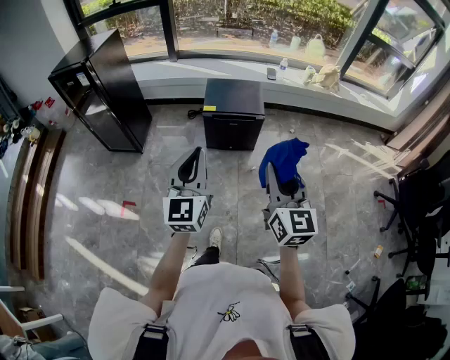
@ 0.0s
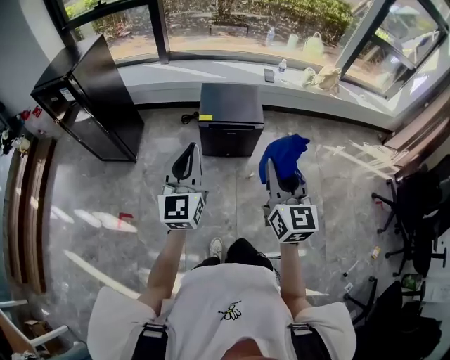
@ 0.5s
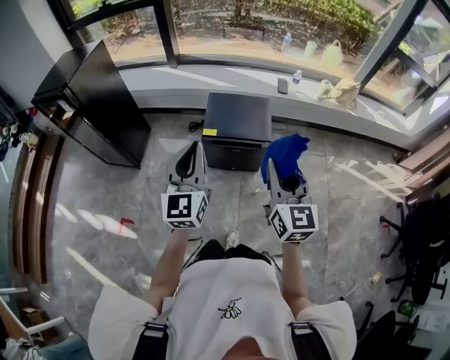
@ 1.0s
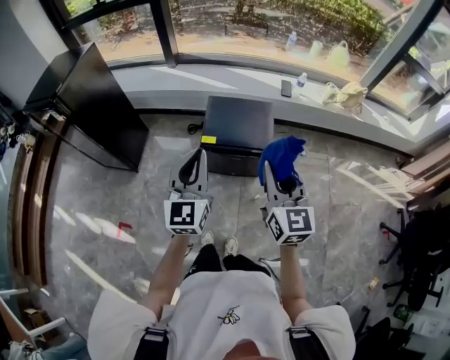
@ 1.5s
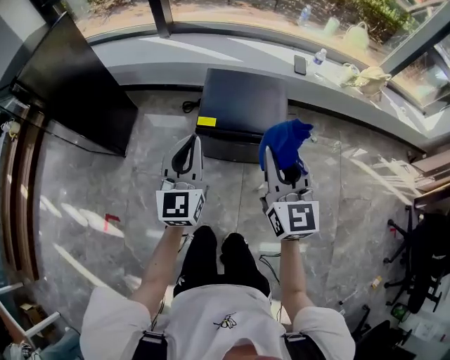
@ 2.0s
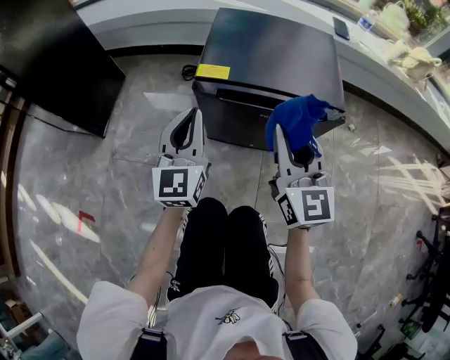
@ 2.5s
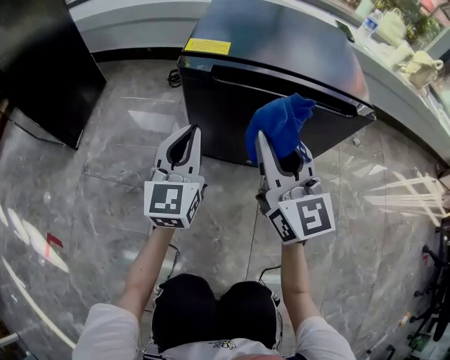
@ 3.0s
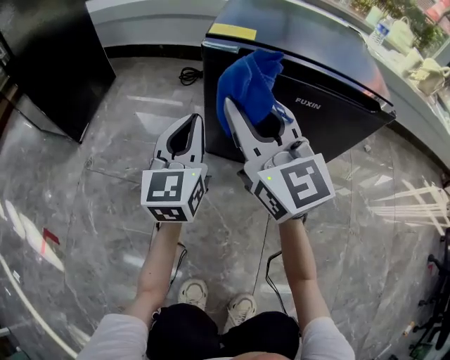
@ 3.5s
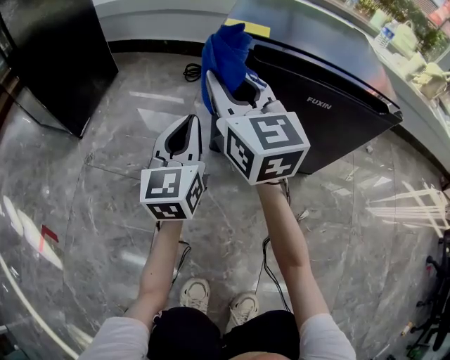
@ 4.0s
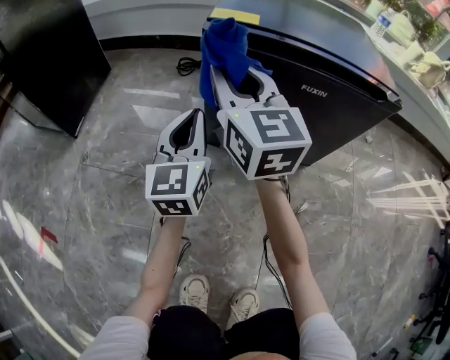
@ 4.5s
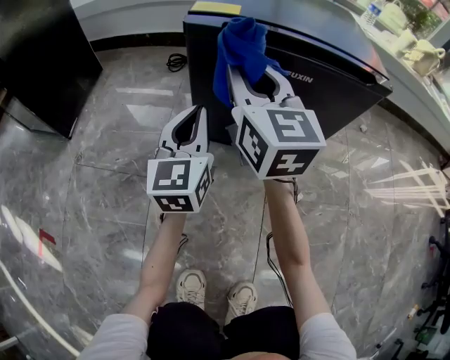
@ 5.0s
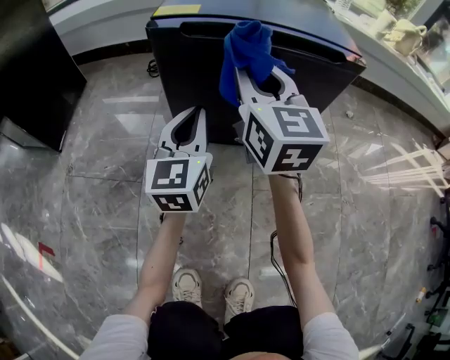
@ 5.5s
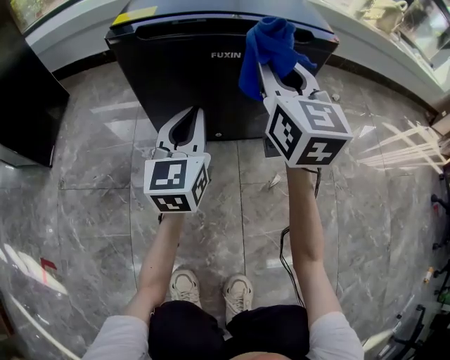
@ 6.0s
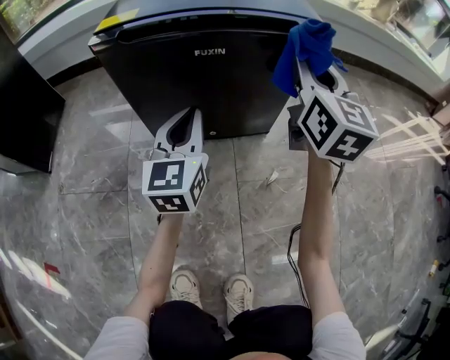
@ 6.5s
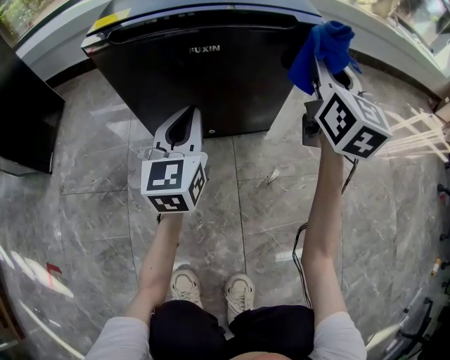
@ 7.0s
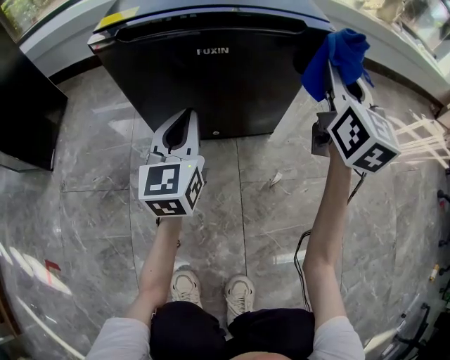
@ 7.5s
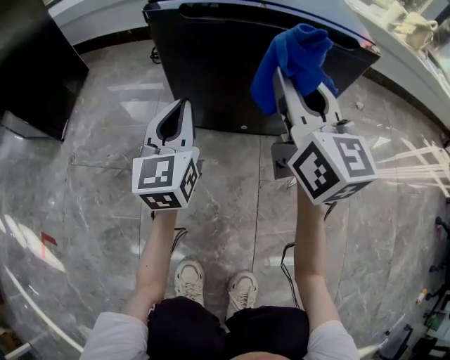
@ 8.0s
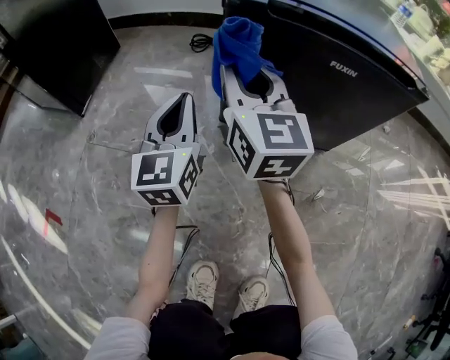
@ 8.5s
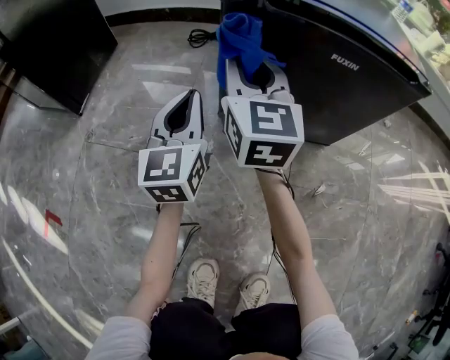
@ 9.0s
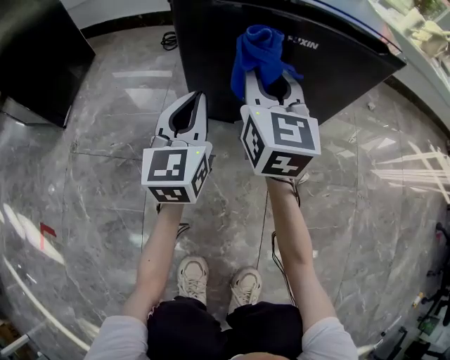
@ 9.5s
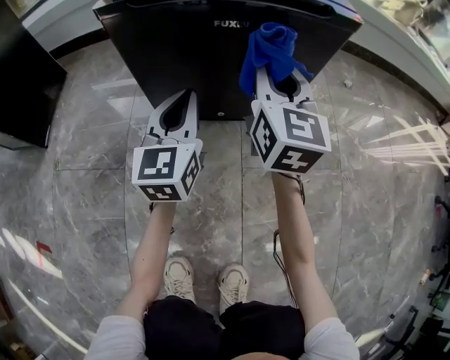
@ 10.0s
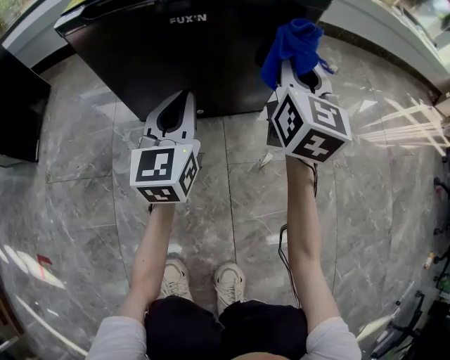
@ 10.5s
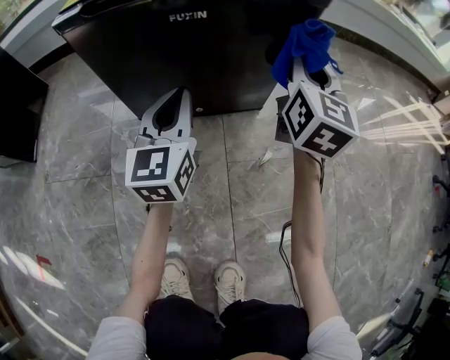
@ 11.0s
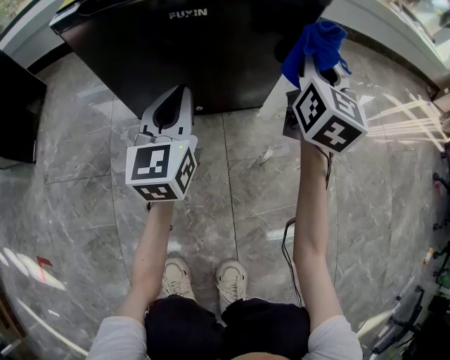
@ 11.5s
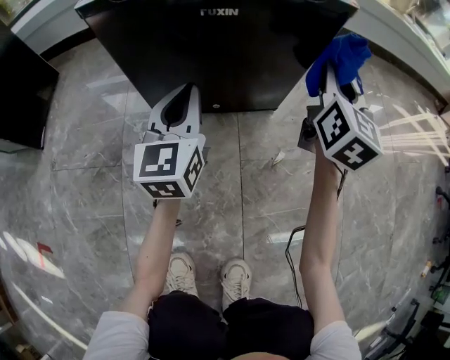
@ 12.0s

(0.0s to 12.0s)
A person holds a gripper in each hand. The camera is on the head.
0.0s - 2.0s: The two grippers travel together, forward, approximately 40 cm. The two grippers go about 20 cm downward.
2.0s - 4.0s: Both grippers move downward, about 50 cm.
4.0s - 6.0s: The two grippers go roughly 20 cm to the right. The right gripper rotates some 30 degrees.
6.0s - 8.0s: The left gripper goes roughly 10 cm to the left. The right gripper travels to the right and back again, about 15 cm each way.
8.0s - 10.0s: The right gripper shifts approximately 5 cm downward, and travels to the left and back again, about 20 cm each way. The left gripper goes some 10 cm to the right.
10.0s - 12.0s: The right gripper travels to the right by roughly 15 cm.

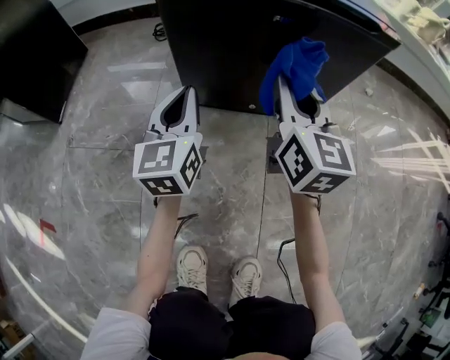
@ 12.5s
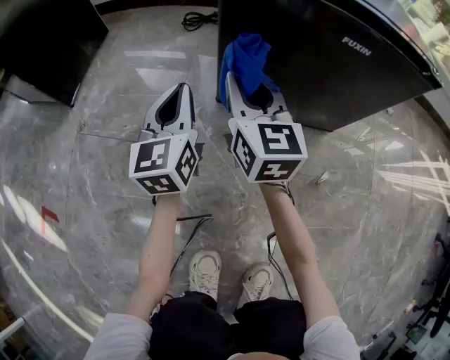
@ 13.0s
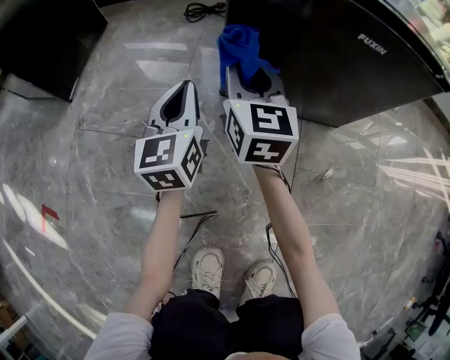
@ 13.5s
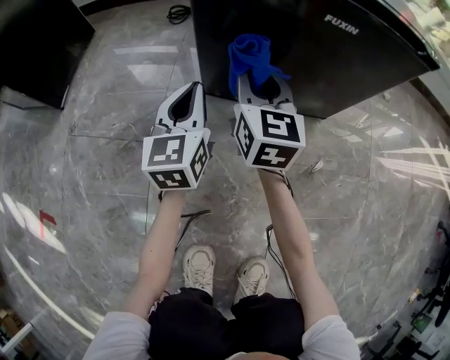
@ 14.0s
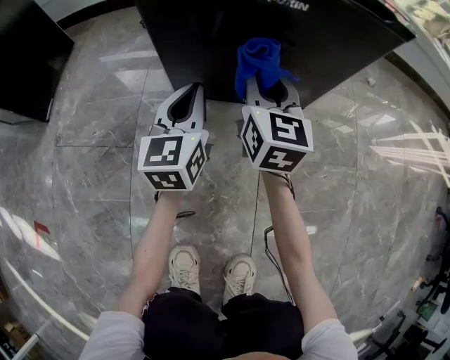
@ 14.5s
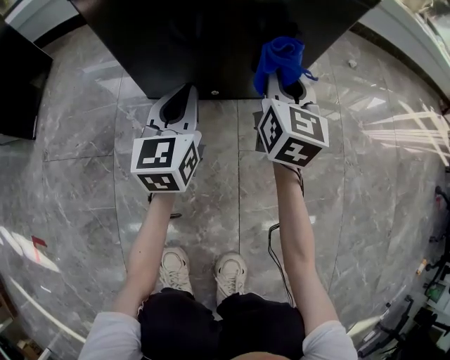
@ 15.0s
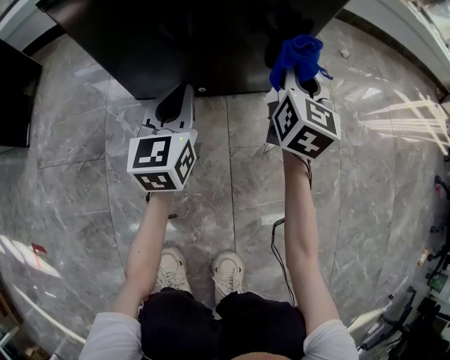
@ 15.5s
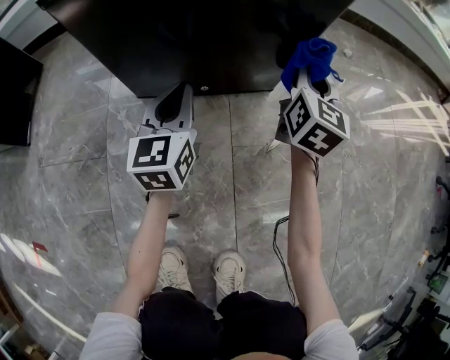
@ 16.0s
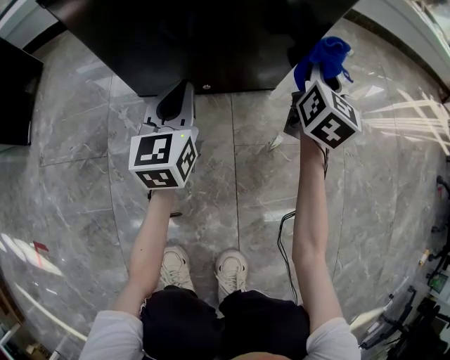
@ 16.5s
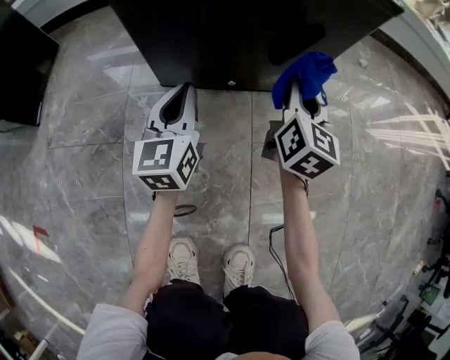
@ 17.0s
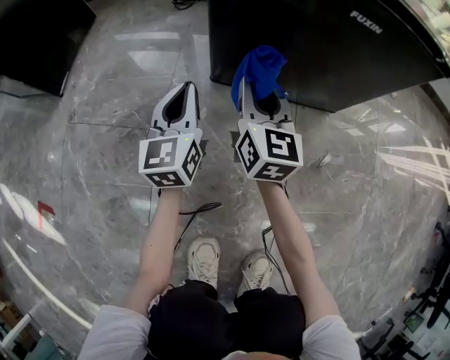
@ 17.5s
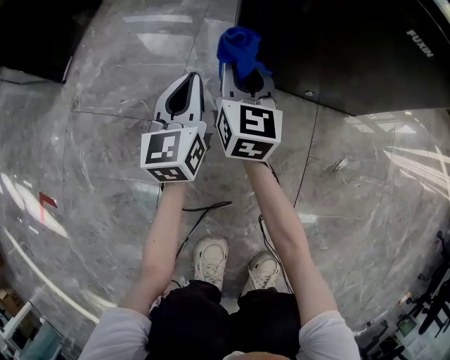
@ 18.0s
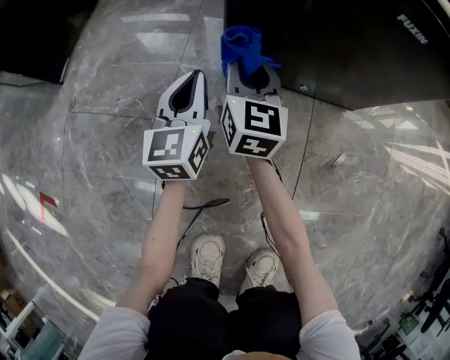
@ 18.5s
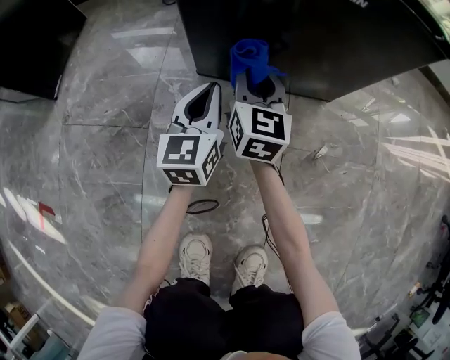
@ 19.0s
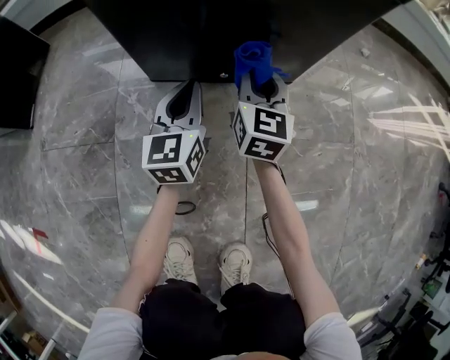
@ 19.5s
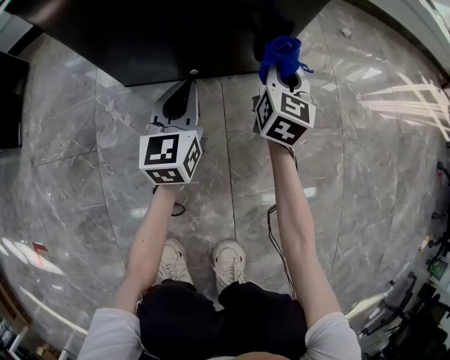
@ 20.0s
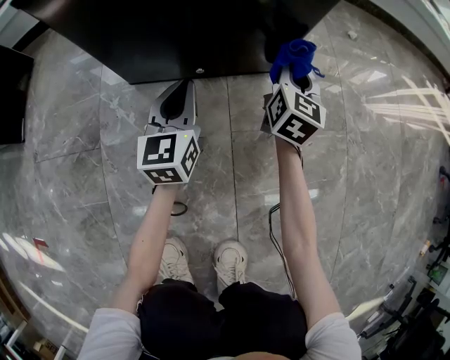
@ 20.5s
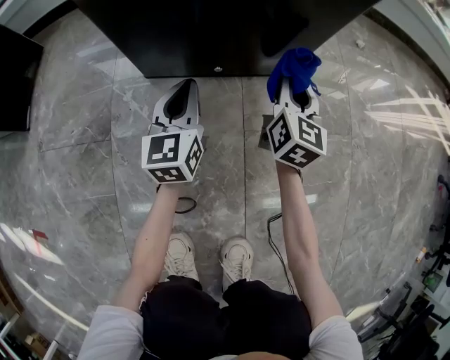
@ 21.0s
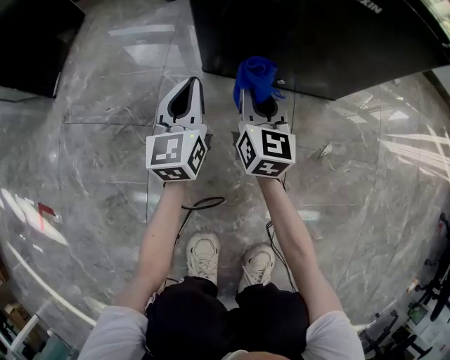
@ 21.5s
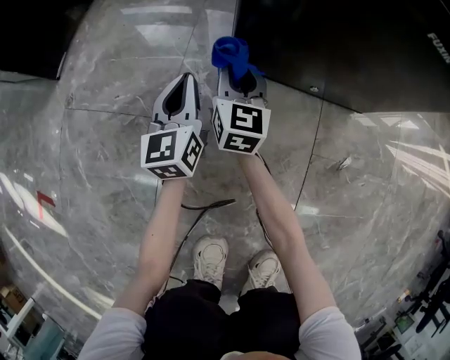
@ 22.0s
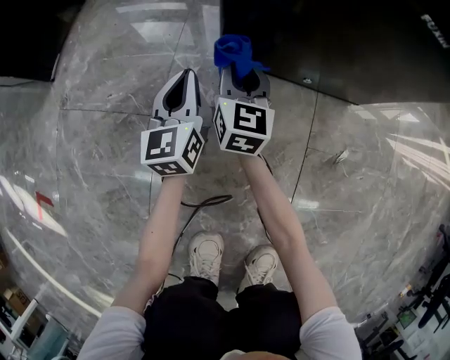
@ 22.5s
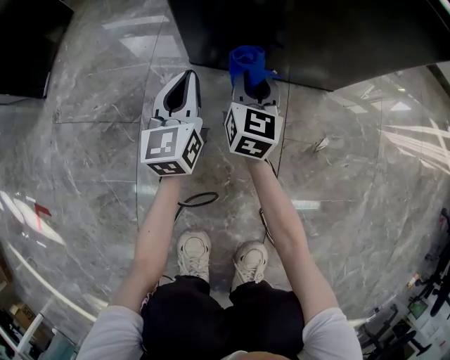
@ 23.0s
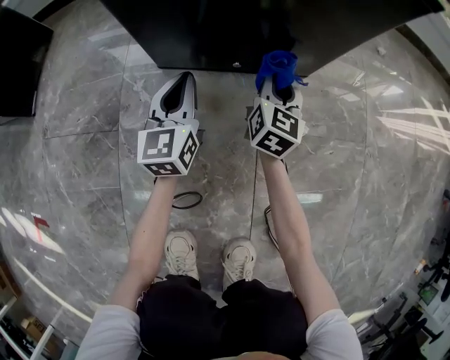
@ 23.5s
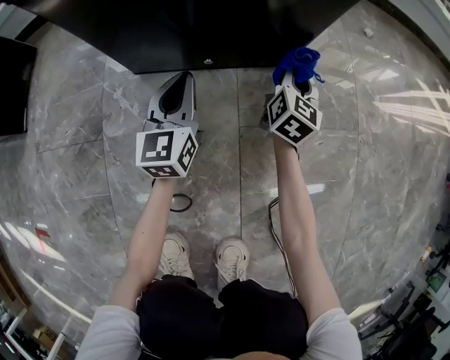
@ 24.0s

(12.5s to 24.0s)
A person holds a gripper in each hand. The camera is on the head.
12.5s - 14.5s: The left gripper moves downward, roughly 5 cm, and goes to the left and returns, some 10 cm each way. The right gripper is displaced downward by roughly 10 cm, and moves roughly 20 cm to the left and comes back.
14.5s - 16.5s: The right gripper shifts about 25 cm to the right, and swivels approximately 30 degrees, while the left gripper goes approximately 5 cm to the right.
16.5s - 18.5s: The left gripper moves approximately 20 cm, while the right gripper ends up some 40 cm from where it was, and swivels some 30 degrees.
18.5s - 20.0s: The left gripper shifts some 25 cm to the right, while the right gripper shifts some 35 cm to the right, and rotates approximately 30 degrees.
20.0s - 22.0s: The left gripper moves some 30 cm, and rotates approximately 20 degrees. The right gripper changes place by approximately 40 cm, and turns by some 30 degrees.
22.0s - 24.0s: The left gripper shifts by approximately 25 cm, while the right gripper ends up about 40 cm from where it was, and rotates some 30 degrees.

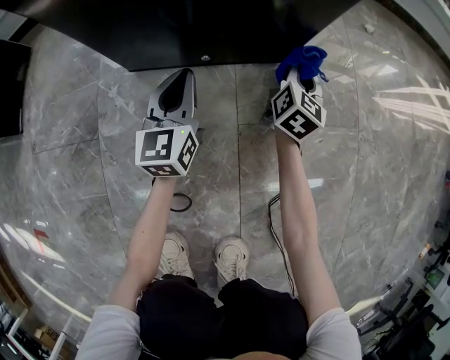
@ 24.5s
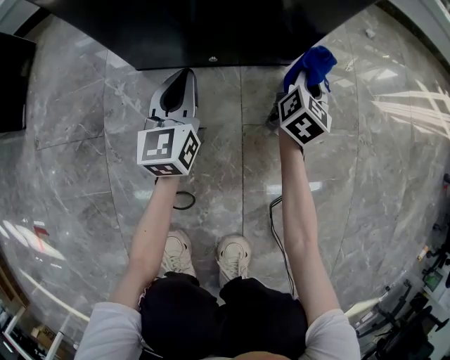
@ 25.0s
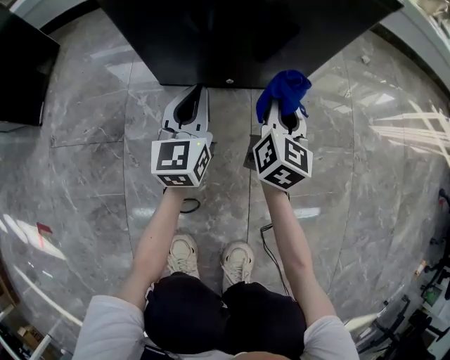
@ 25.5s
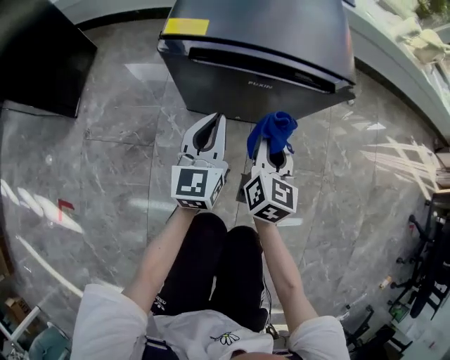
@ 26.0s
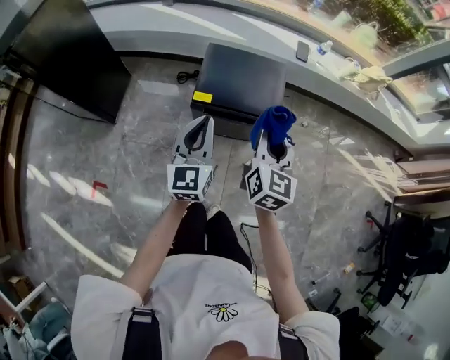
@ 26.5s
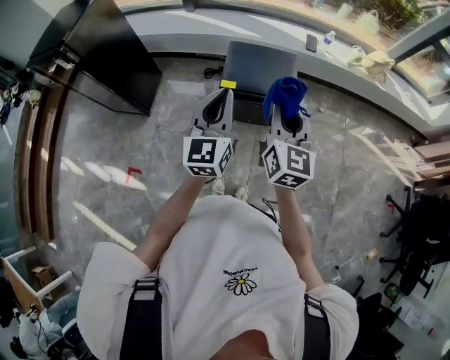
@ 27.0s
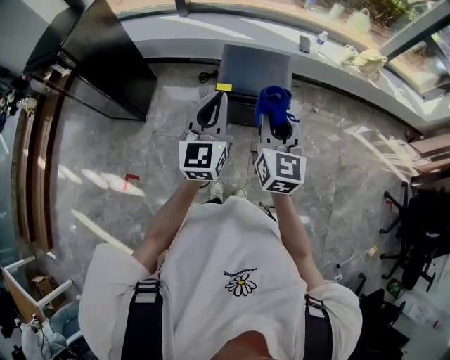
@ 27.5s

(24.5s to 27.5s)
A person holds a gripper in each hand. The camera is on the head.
24.5s - 26.0s: The left gripper shifts some 25 cm upward. Meanwhile the right gripper moves upward, to the left and backward, about 35 cm.
26.0s - 27.5s: The grippers both shift upward by about 60 cm. The right gripper turns by approximately 20 degrees.
